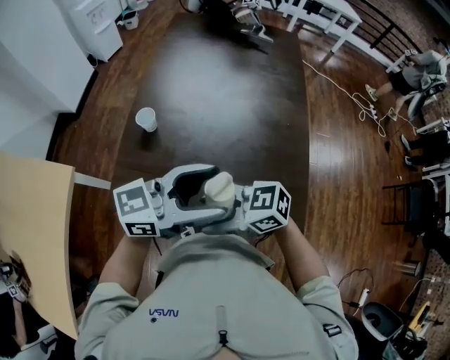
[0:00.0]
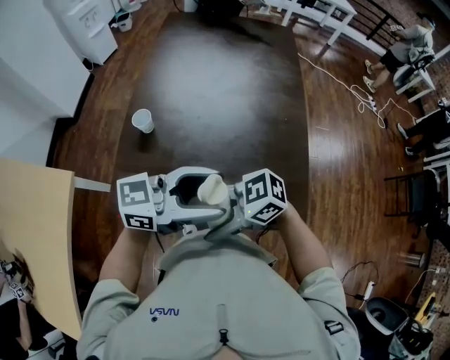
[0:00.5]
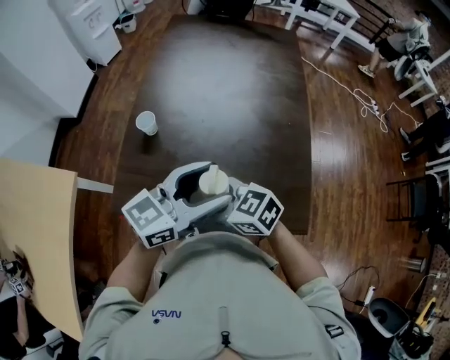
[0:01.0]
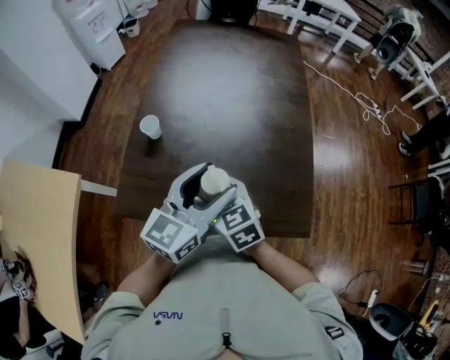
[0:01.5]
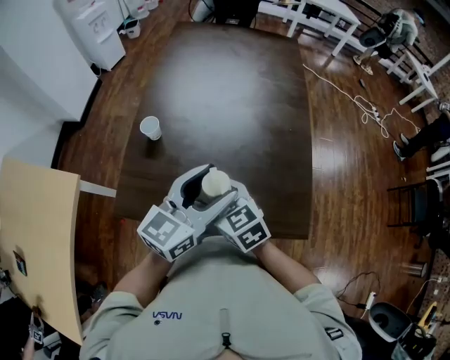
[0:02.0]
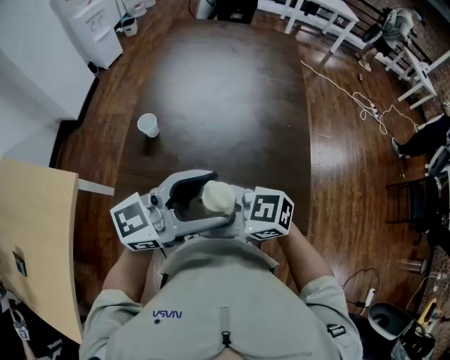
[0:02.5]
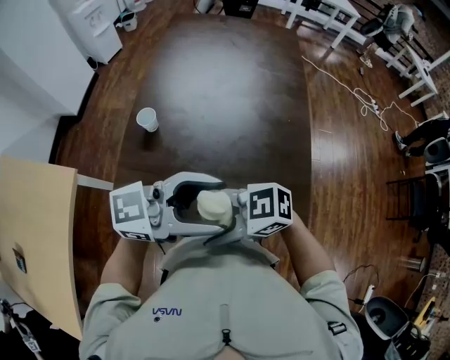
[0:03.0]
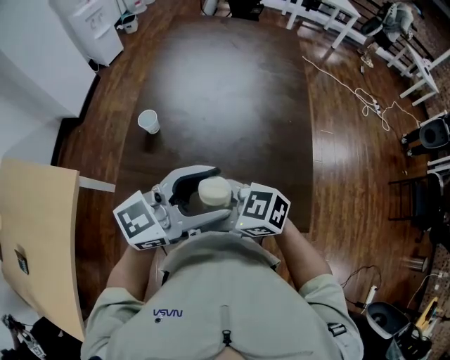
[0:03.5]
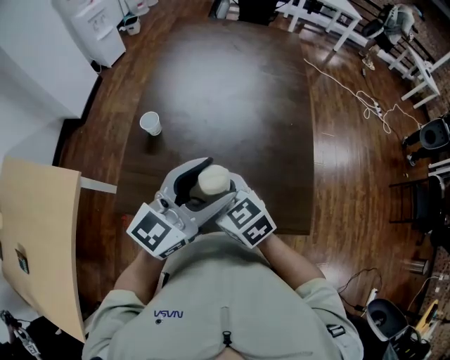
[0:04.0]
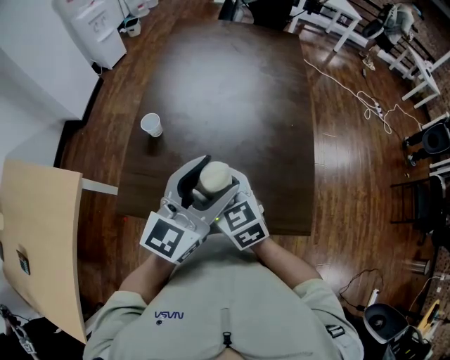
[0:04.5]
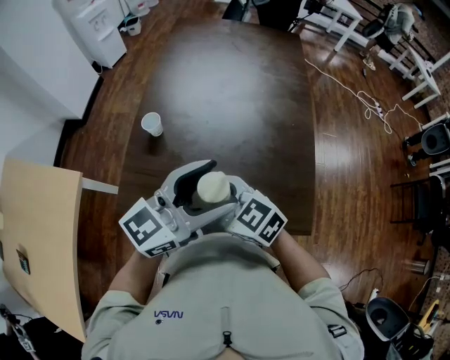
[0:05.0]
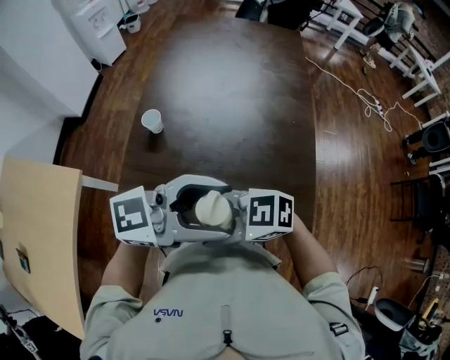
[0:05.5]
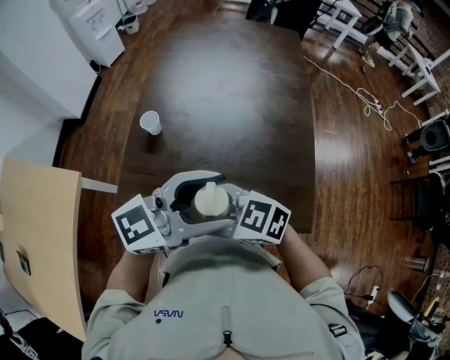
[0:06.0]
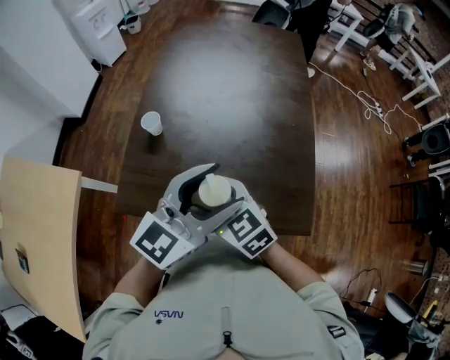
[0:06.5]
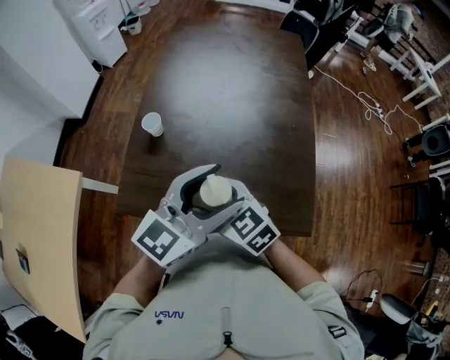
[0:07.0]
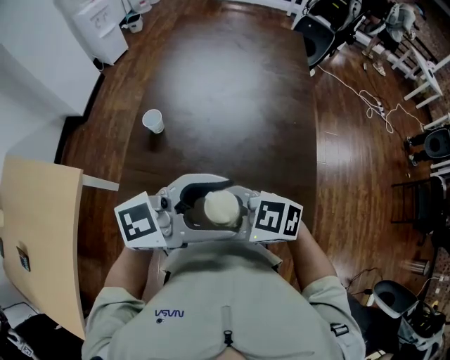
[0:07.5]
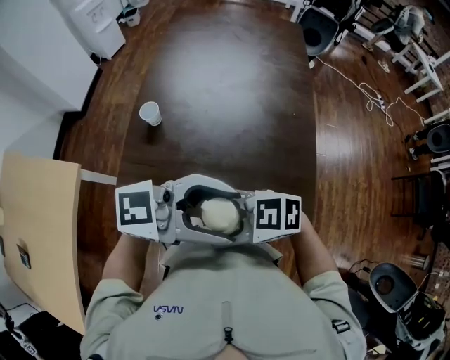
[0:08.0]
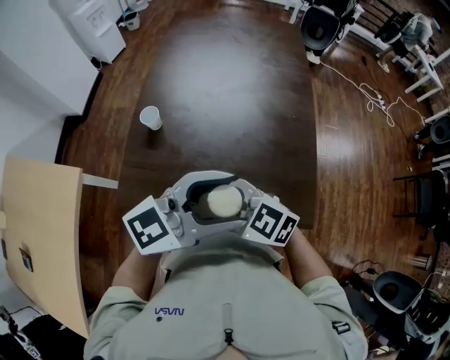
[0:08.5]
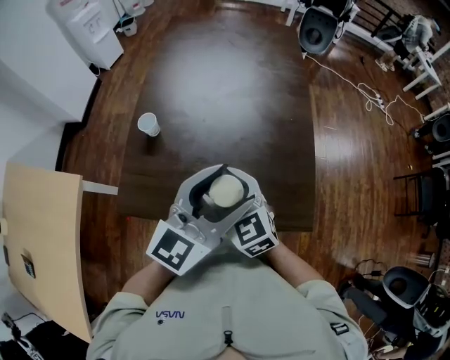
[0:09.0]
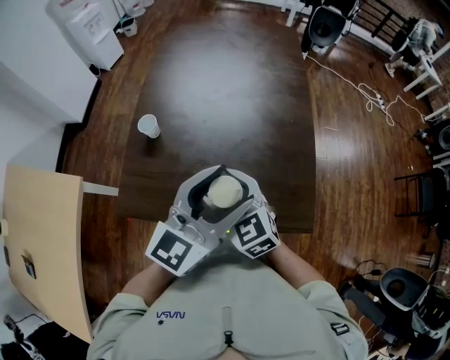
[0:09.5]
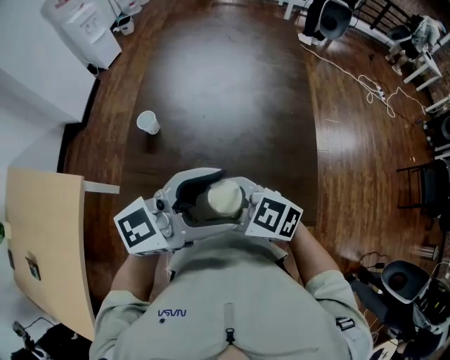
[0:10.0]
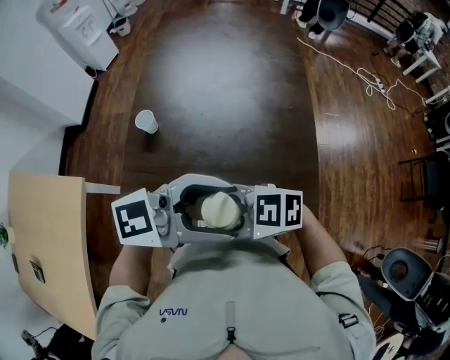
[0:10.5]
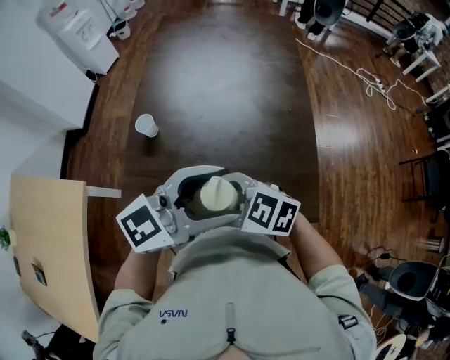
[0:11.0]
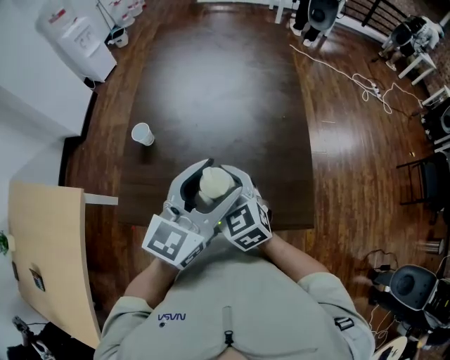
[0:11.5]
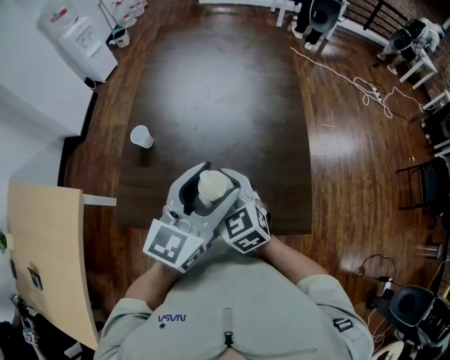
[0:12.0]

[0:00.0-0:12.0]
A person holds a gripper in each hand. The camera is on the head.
0:00.0 to 0:02.0: The left gripper swivels about 30 degrees, while the right gripper moves roughly 10 cm, and changes its angle by about 50 degrees.
0:04.0 to 0:06.0: The right gripper changes its angle by approximately 30 degrees, while the left gripper changes its angle by about 20 degrees.
0:06.0 to 0:08.0: The left gripper changes its angle by some 20 degrees. The right gripper moves approximately 5 cm, and rotates some 20 degrees.
0:08.0 to 0:10.0: The right gripper turns by approximately 30 degrees. The left gripper changes its angle by roughly 20 degrees.
0:10.0 to 0:12.0: The left gripper ends up approximately 10 cm from where it was, and swivels roughly 30 degrees, while the right gripper ends up about 10 cm from where it was, and rotates some 40 degrees.

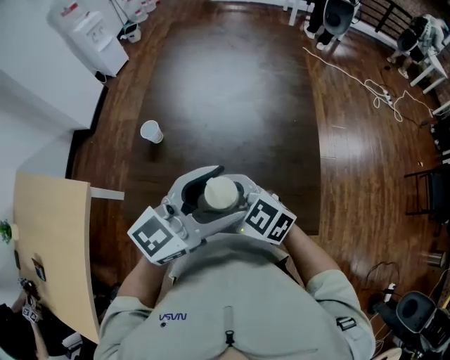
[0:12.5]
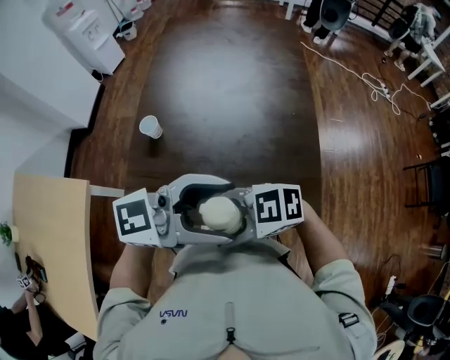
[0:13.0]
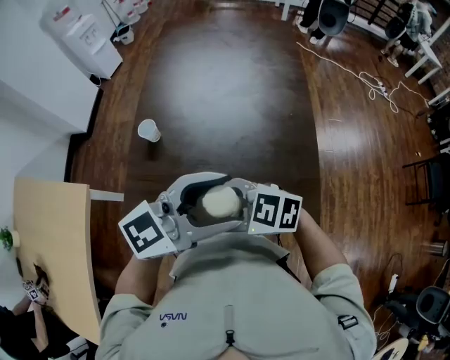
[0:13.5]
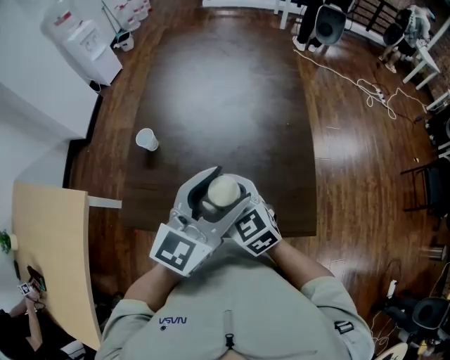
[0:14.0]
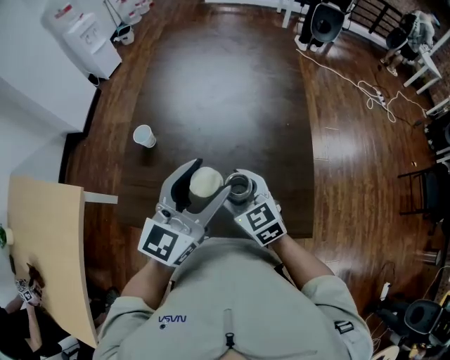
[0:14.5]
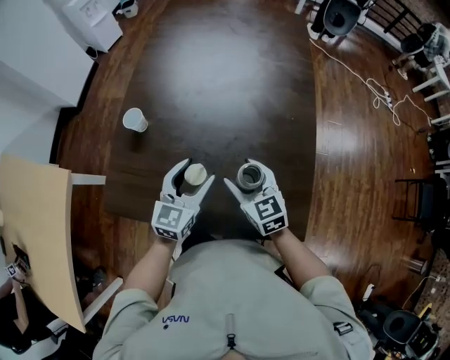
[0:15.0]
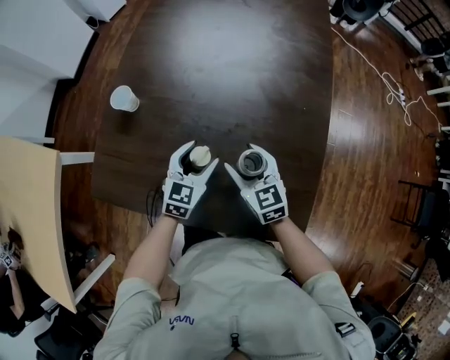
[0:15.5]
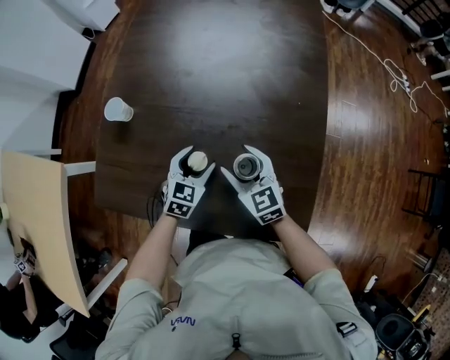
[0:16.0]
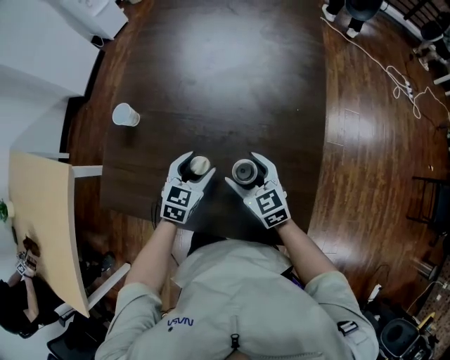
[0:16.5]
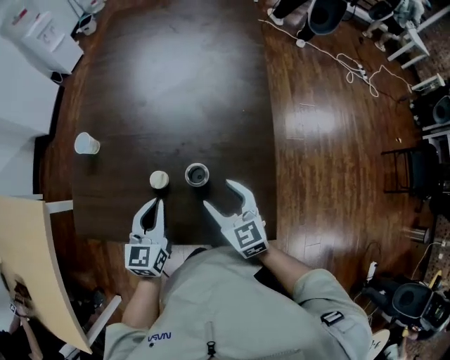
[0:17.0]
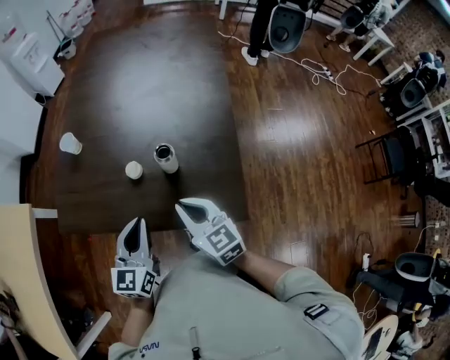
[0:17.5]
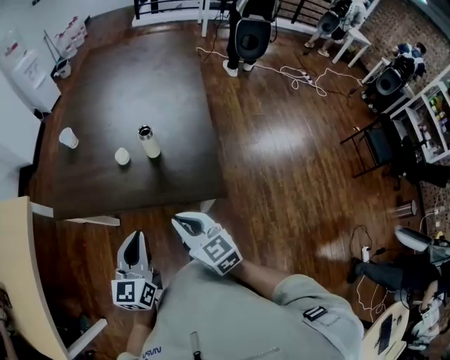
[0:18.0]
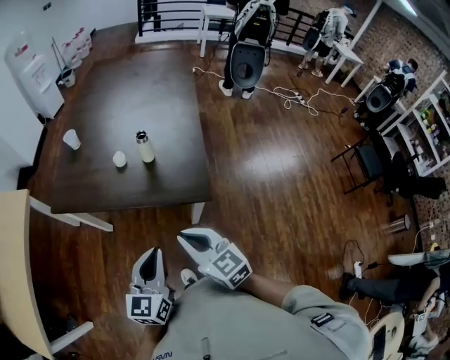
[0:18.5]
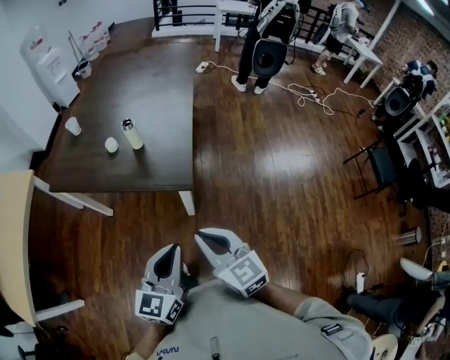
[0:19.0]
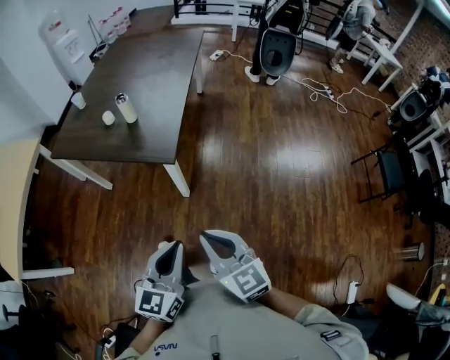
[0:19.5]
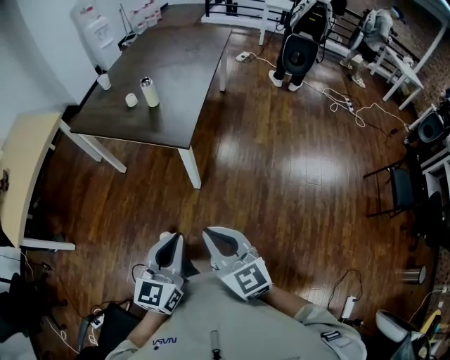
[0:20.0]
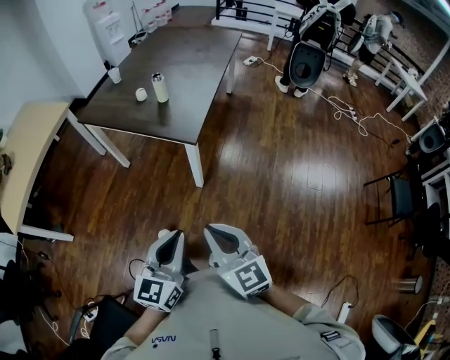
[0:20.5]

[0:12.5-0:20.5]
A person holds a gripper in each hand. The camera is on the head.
0:12.5 to 0:14.5: The right gripper ends up about 10 cm from where it was, and changes its angle by approximately 30 degrees. Meanwhile the left gripper moves some 5 cm, and swivels roughly 20 degrees.
0:14.5 to 0:16.5: The left gripper moves downward, roughly 30 cm, and tilts its fingers approximately 40 degrees downward. Meanwhile the right gripper shifts some 15 cm downward and to the right.
0:16.5 to 0:18.5: The two grippers go about 40 cm backward and upward. The right gripper closes up, while the left gripper rotates approximately 30 degrees, and closes its fingers.
0:18.5 to 0:20.5: Both grippers travel together backward and to the right, roughly 30 cm.

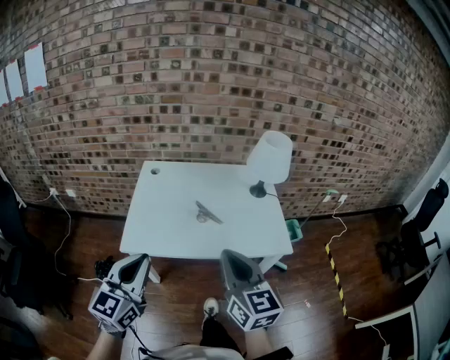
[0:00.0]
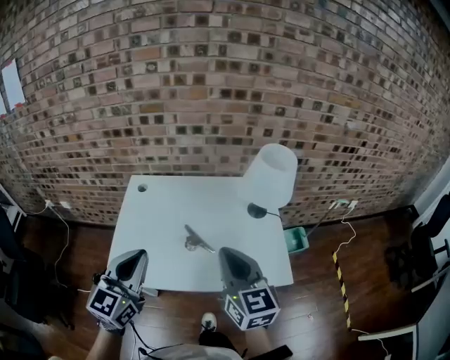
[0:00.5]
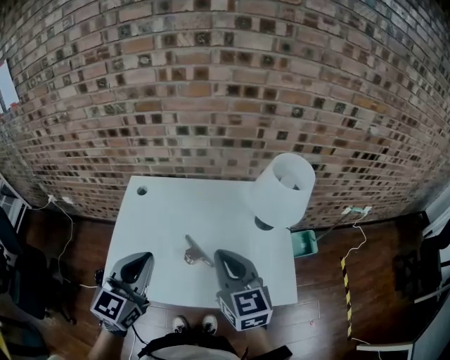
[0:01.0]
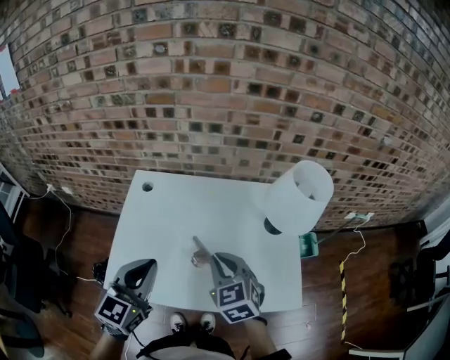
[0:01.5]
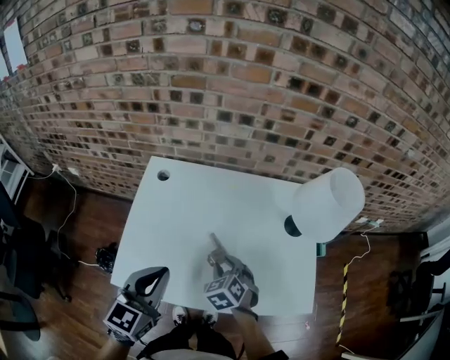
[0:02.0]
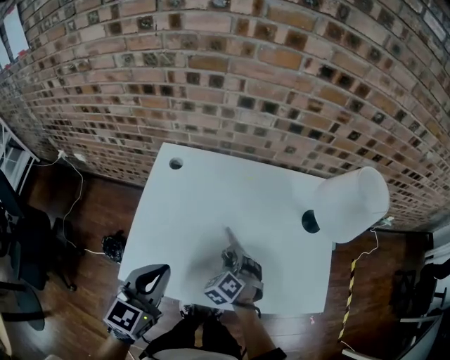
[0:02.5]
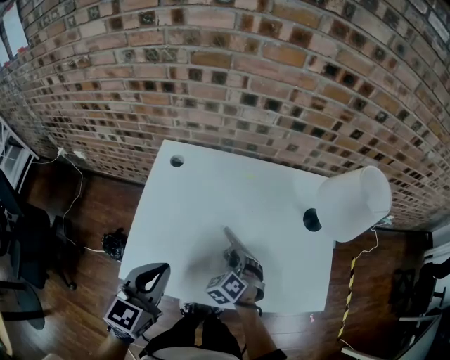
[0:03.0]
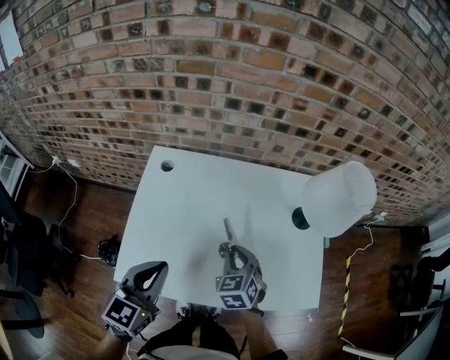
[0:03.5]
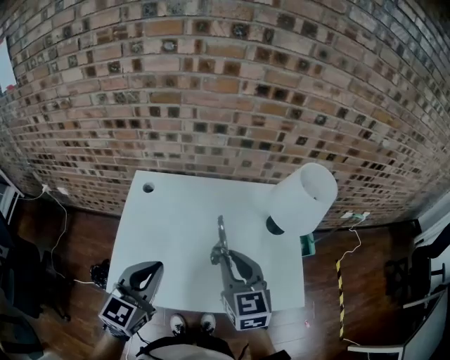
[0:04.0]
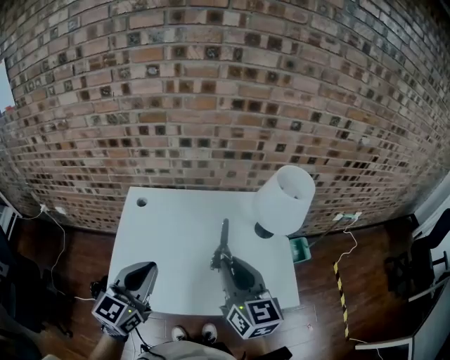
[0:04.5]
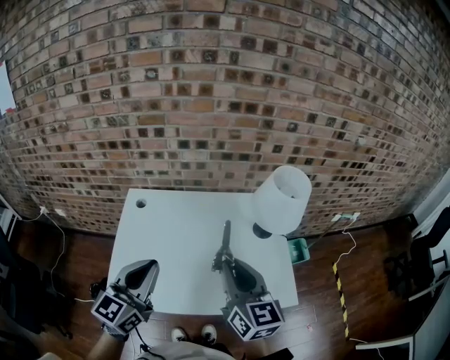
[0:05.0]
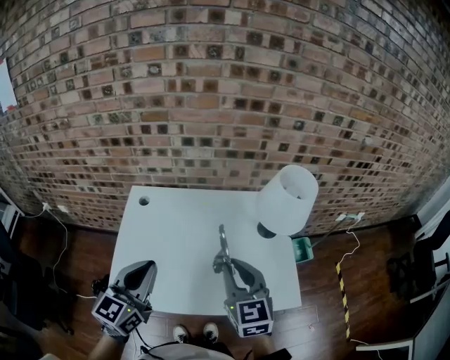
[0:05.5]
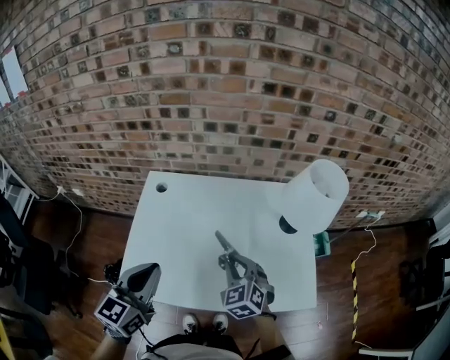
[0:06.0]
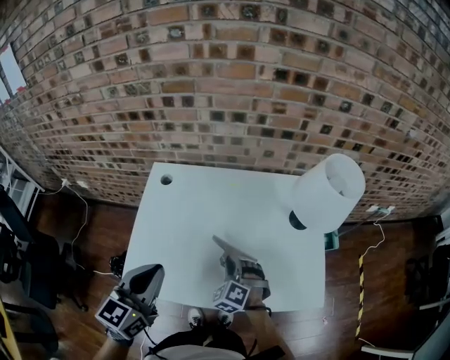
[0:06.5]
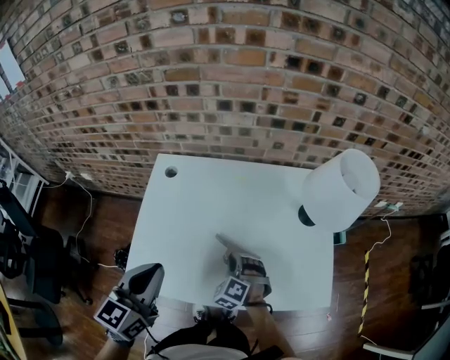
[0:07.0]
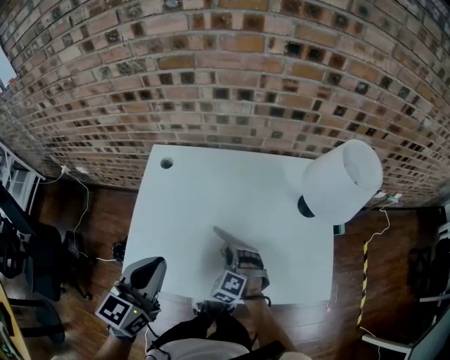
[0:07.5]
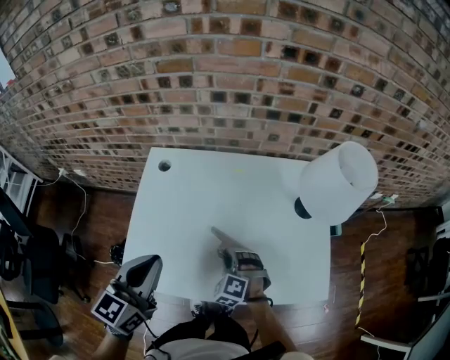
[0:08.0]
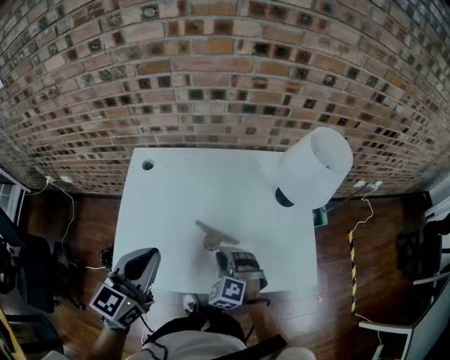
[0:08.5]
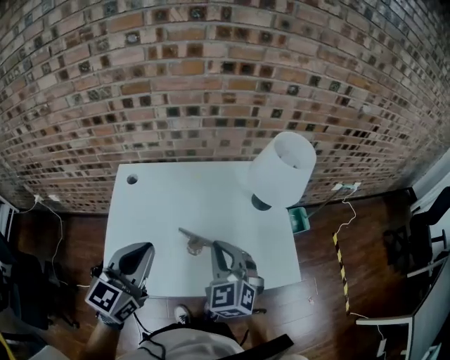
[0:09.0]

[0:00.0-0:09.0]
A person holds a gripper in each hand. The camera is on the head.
0:00.0 to 0:02.0: The left gripper shifts about 25 cm forward. Meanwhile the right gripper shifts roughly 40 cm forward and downward, tips its fingers downward by approximately 50 degrees, and opens its fingers.
0:02.0 to 0:04.5: The right gripper goes some 25 cm upward, and tilts its fingers about 50 degrees upward. The left gripper heads upward, covering approximately 5 cm.
0:04.5 to 0:07.0: The right gripper shifts roughly 30 cm downward, and rotates around the line of its fingers by roughly 70 degrees, counterclockwise from behind. Meanwhile the left gripper goes approximately 10 cm to the left and downward.
0:07.0 to 0:09.0: The right gripper travels upward by approximately 20 cm, and turns by some 40 degrees. The left gripper moves to the right and upward, approximately 10 cm.
